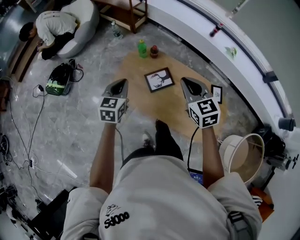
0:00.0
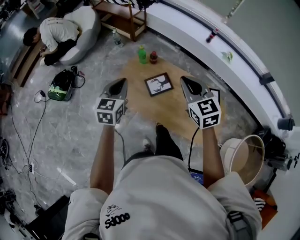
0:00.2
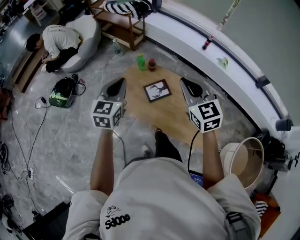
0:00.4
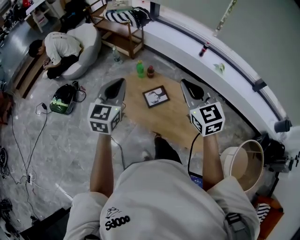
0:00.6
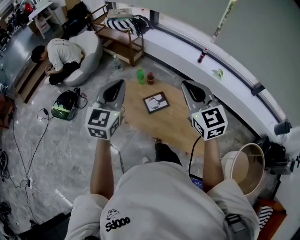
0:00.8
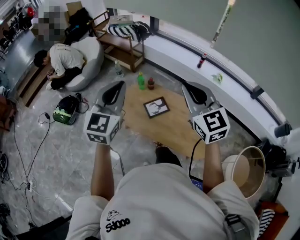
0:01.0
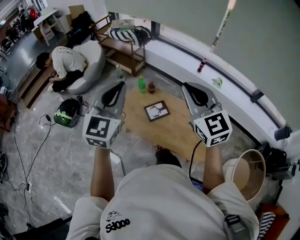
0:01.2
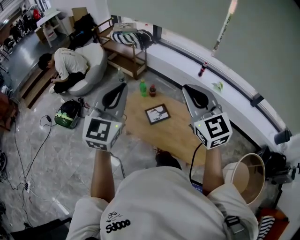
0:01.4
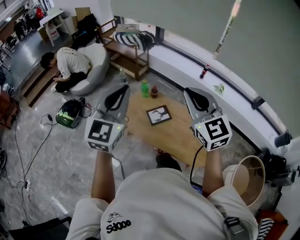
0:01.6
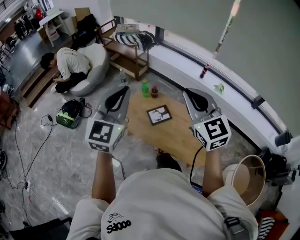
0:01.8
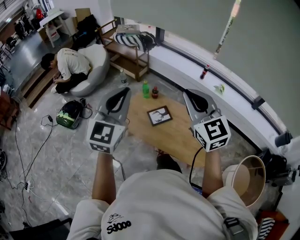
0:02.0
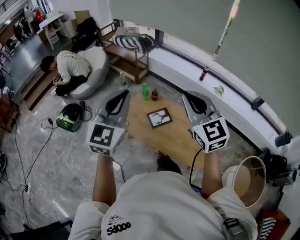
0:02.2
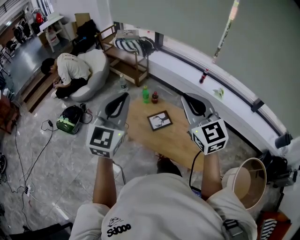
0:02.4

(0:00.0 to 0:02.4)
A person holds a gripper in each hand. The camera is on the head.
0:00.0 - 0:01.2: The right gripper travels upward and backward by about 30 cm, and swivels approximately 30 degrees. The left gripper goes approximately 30 cm upward, and rotates roughly 40 degrees.
0:01.2 - 0:02.4: The grippers stay close to where they were, moving slightly.

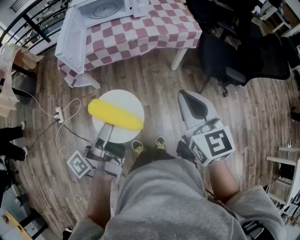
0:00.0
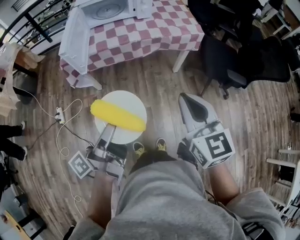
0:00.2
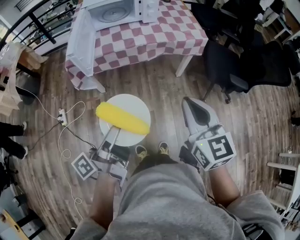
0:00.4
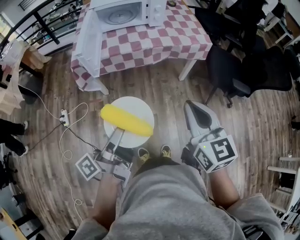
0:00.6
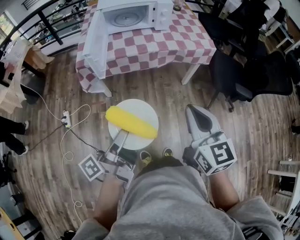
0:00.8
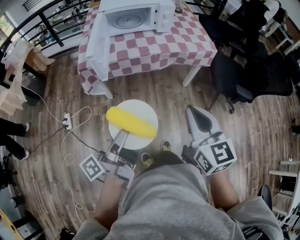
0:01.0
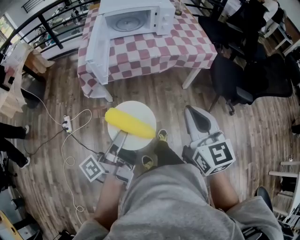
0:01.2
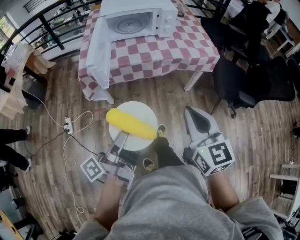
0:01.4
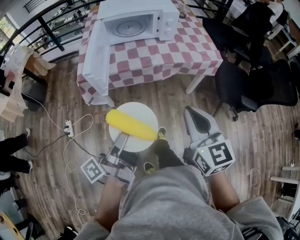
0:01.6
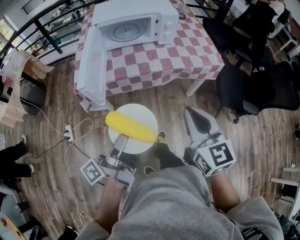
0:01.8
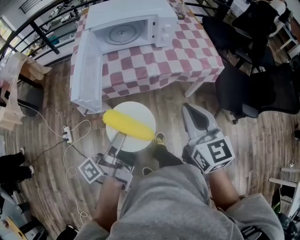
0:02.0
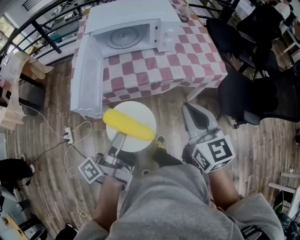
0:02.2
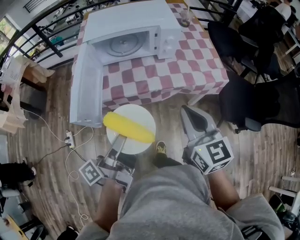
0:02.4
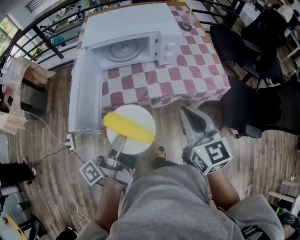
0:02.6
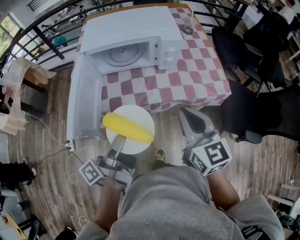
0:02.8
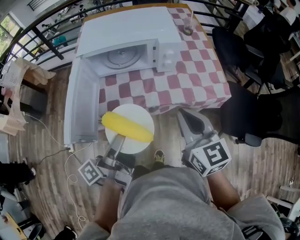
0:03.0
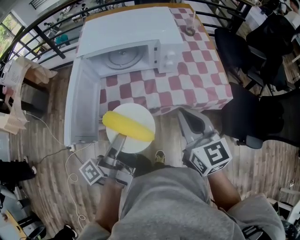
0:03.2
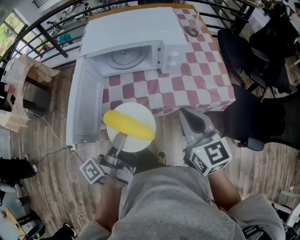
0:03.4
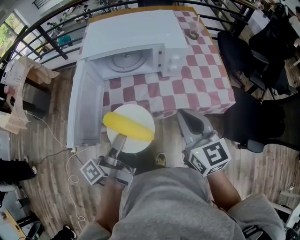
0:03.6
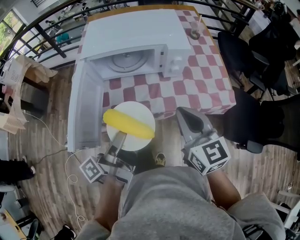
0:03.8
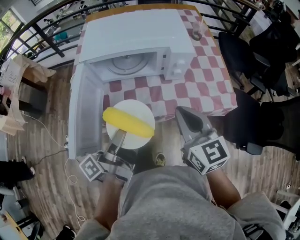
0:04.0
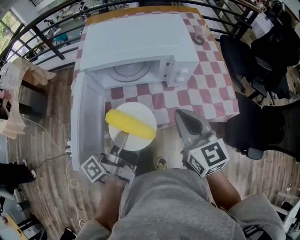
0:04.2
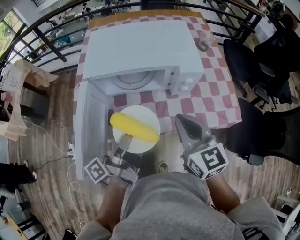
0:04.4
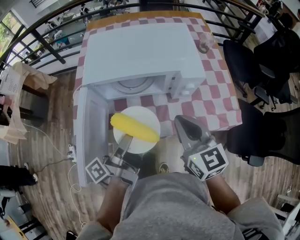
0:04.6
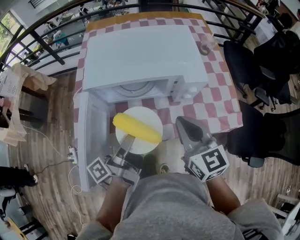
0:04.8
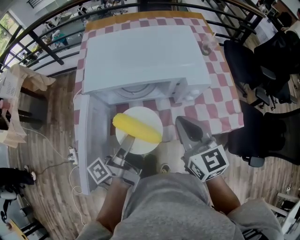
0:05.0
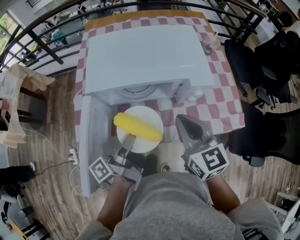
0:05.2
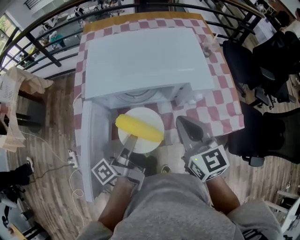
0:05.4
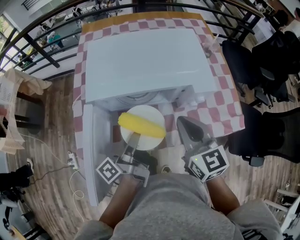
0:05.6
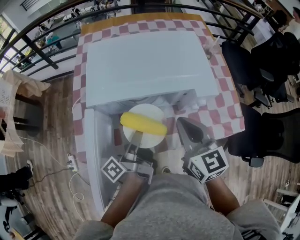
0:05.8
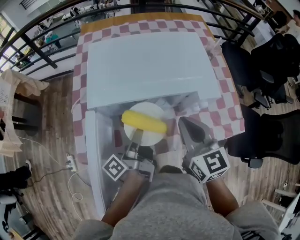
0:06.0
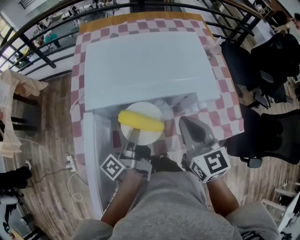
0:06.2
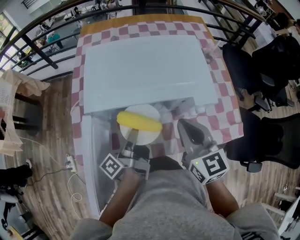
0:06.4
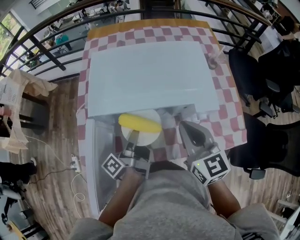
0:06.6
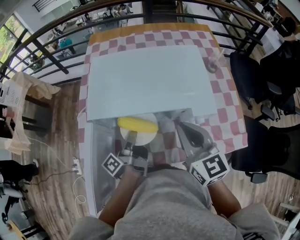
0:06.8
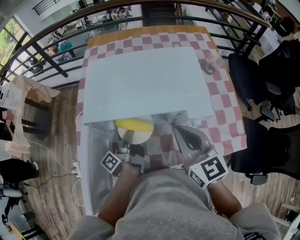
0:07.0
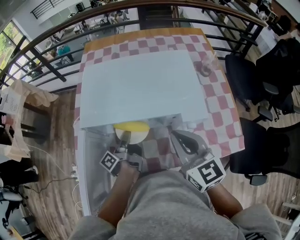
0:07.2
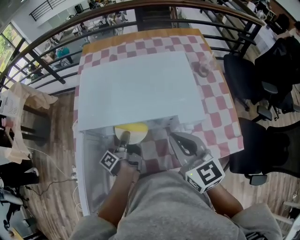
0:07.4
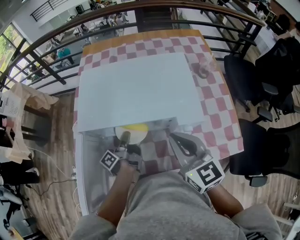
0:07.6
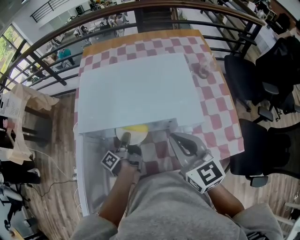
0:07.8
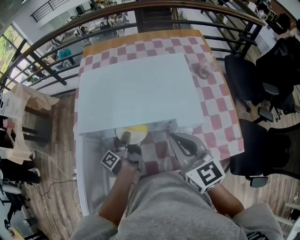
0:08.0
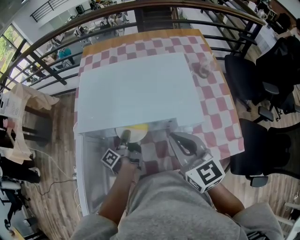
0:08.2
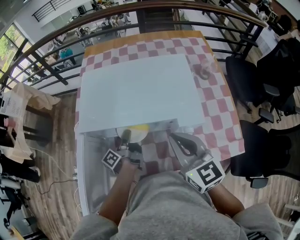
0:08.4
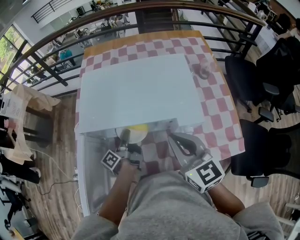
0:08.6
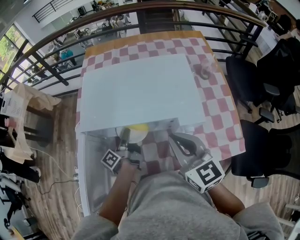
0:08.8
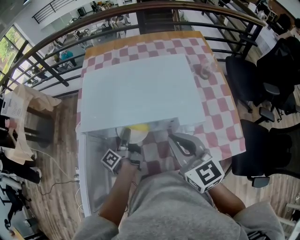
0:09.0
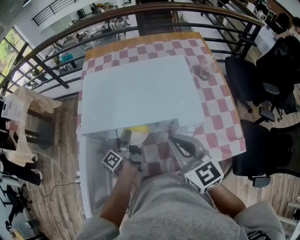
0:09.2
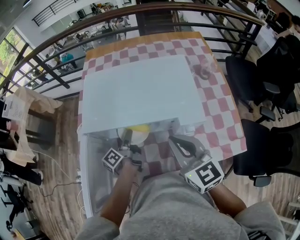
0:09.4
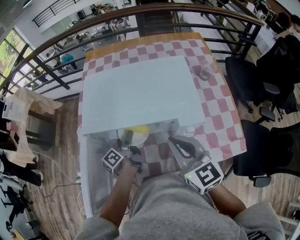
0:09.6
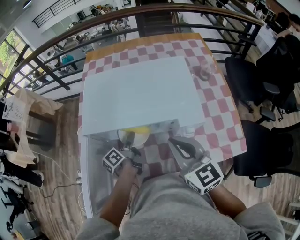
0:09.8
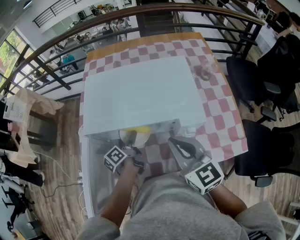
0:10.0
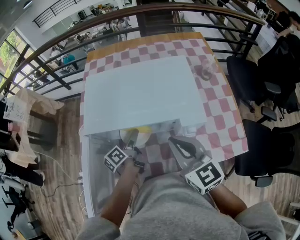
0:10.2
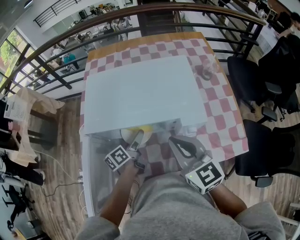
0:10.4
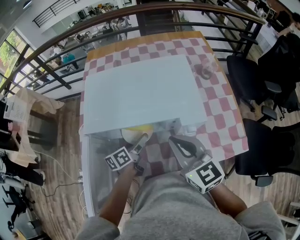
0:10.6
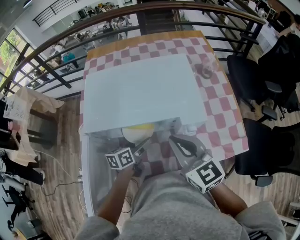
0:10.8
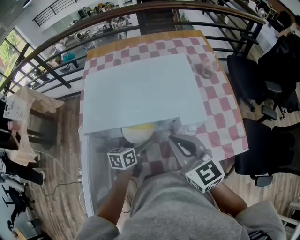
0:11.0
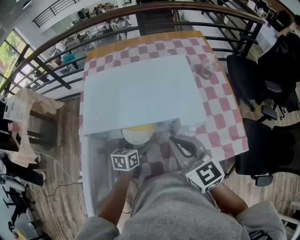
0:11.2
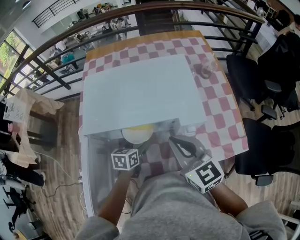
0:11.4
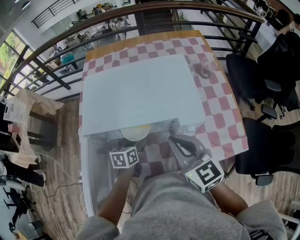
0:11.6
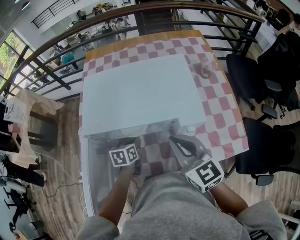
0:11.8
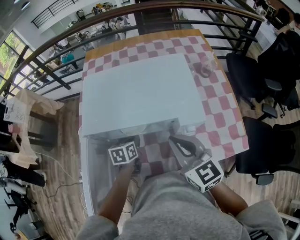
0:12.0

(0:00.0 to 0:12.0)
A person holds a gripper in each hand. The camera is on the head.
0:00.0 - 0:01.6: Both grippers travel together to the left and forward, roughly 10 cm.
0:01.6 - 0:03.0: Both grippers travel together forward, roughly 25 cm.
0:03.0 - 0:04.4: The left gripper goes approximately 15 cm forward; the right gripper shifts approximately 15 cm forward and to the left.
0:04.4 - 0:06.0: The grippers both shift forward by about 10 cm.
0:06.0 - 0:07.6: The left gripper shifts about 10 cm downward and forward.
0:07.6 - 0:09.0: The left gripper opens.
0:09.0 - 0:10.4: The left gripper rotates some 30 degrees, and opens its fingers.
0:10.4 - 0:12.0: The left gripper turns by about 40 degrees, and closes up.

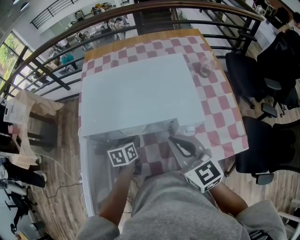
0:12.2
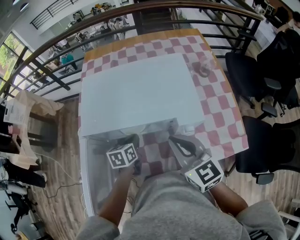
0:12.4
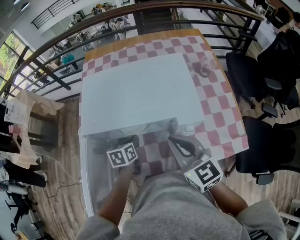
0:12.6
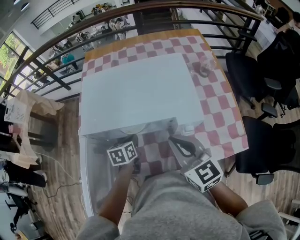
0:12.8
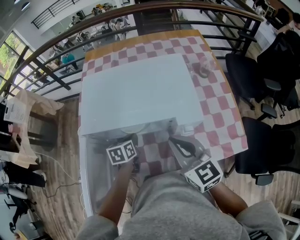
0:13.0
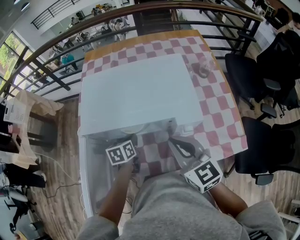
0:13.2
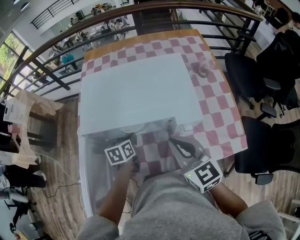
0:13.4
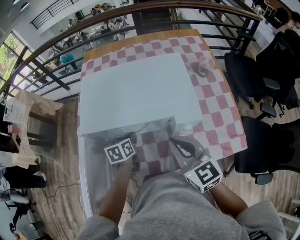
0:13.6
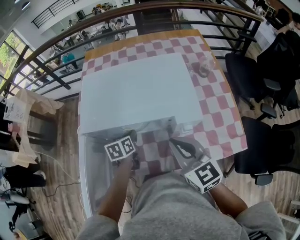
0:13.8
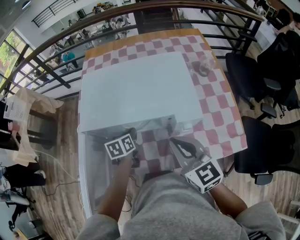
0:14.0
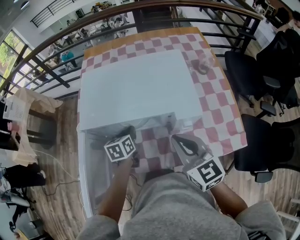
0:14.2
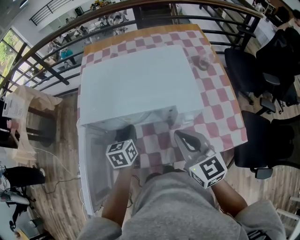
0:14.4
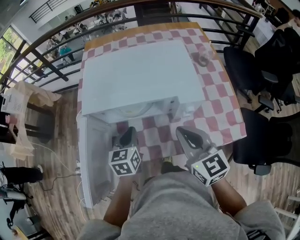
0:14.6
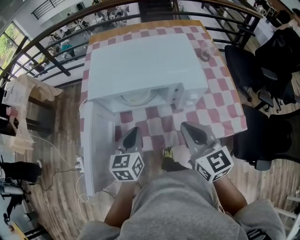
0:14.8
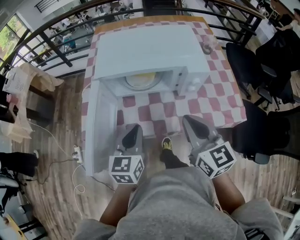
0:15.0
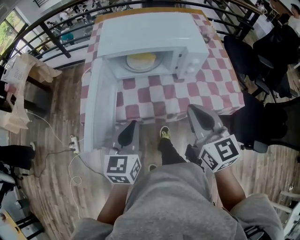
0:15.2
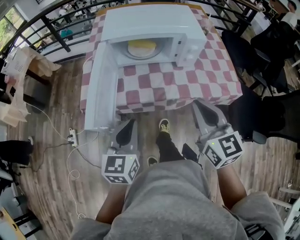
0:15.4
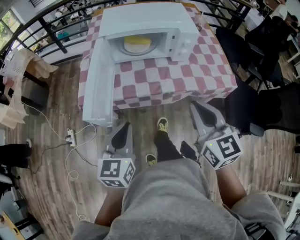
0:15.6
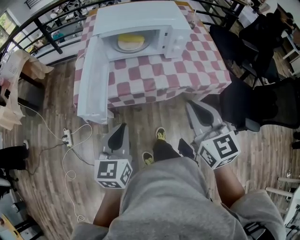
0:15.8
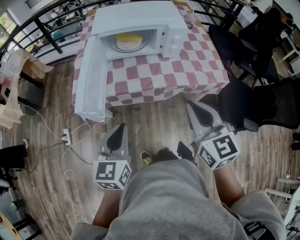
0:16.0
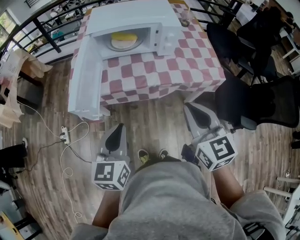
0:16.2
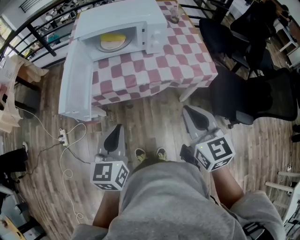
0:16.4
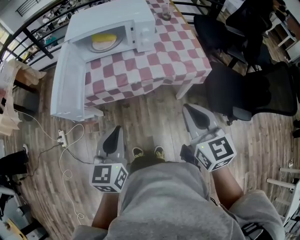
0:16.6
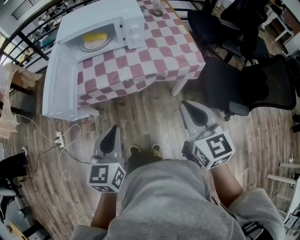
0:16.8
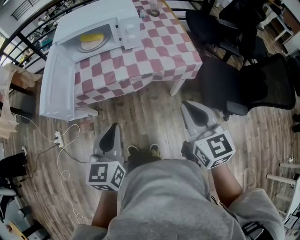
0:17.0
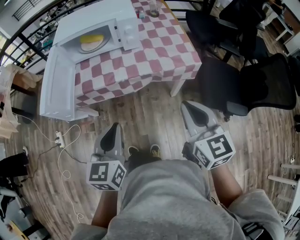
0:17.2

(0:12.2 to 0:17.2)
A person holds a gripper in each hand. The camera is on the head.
0:12.2 - 0:13.8: The grippers stay close to where they were, moving slightly.
0:13.8 - 0:15.6: Both grippers travel together backward, roughly 35 cm. The left gripper swivels roughly 30 degrees.
0:15.6 - 0:17.2: The two grippers go approximately 20 cm to the right and backward.

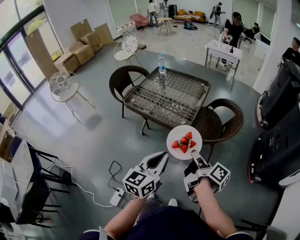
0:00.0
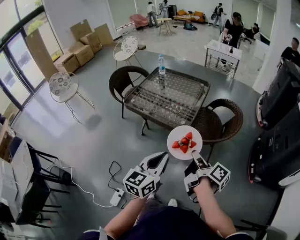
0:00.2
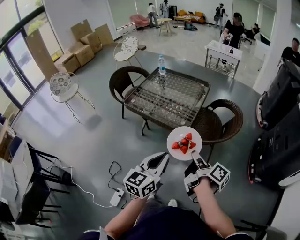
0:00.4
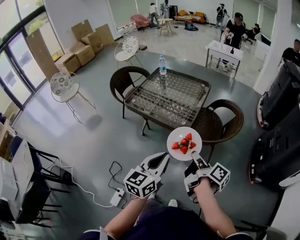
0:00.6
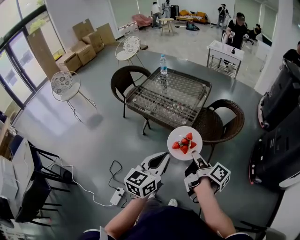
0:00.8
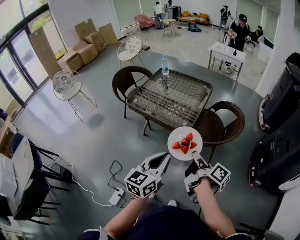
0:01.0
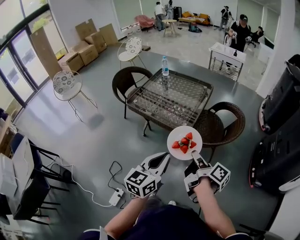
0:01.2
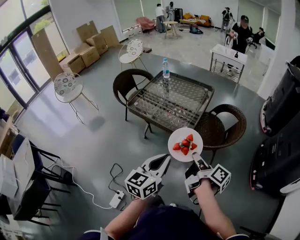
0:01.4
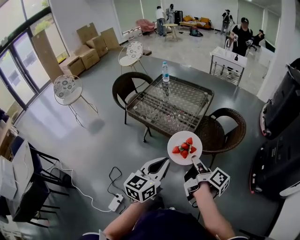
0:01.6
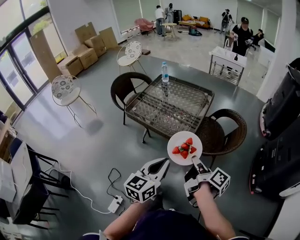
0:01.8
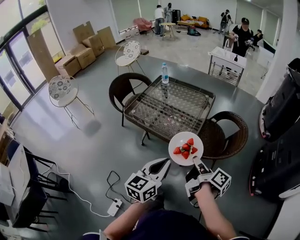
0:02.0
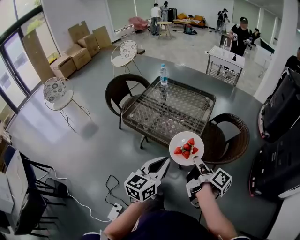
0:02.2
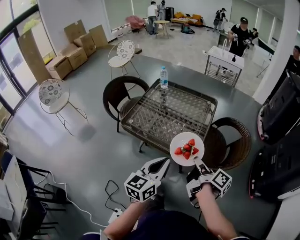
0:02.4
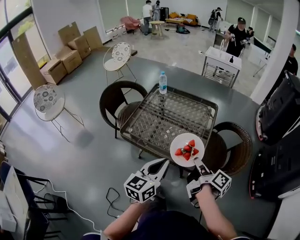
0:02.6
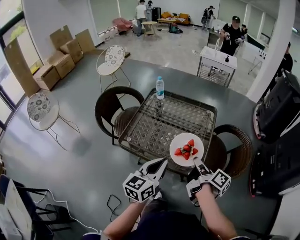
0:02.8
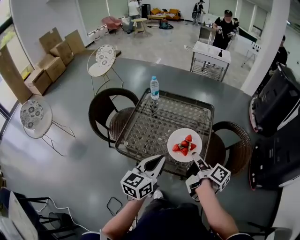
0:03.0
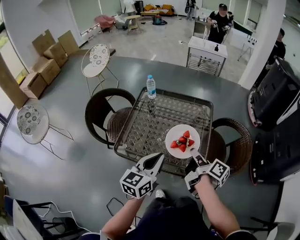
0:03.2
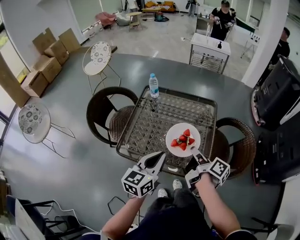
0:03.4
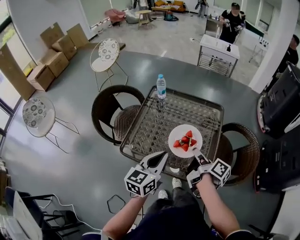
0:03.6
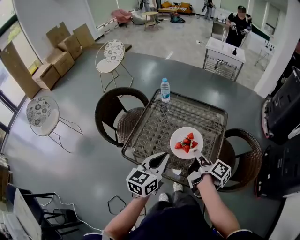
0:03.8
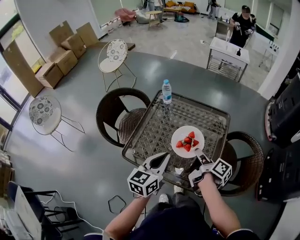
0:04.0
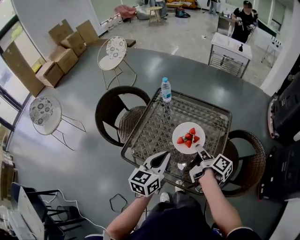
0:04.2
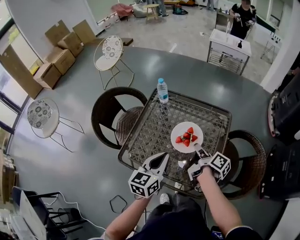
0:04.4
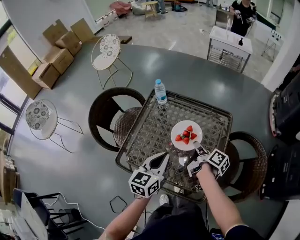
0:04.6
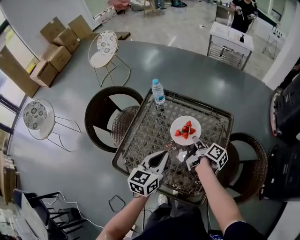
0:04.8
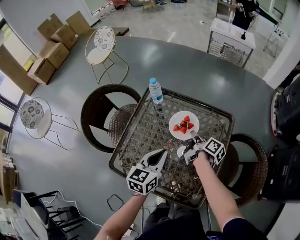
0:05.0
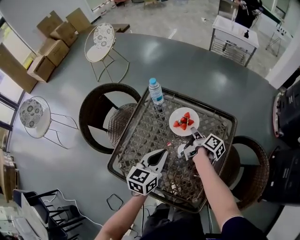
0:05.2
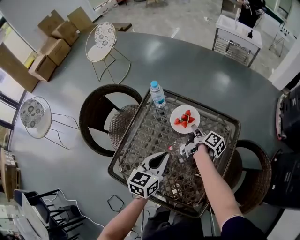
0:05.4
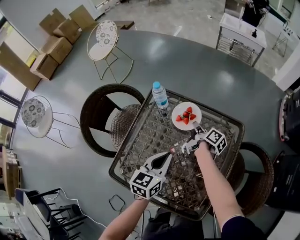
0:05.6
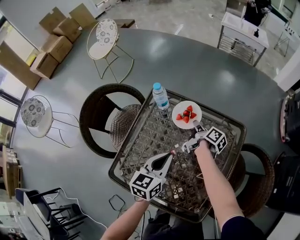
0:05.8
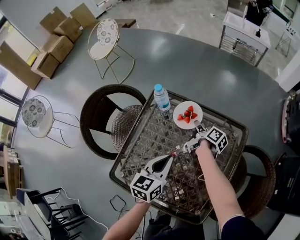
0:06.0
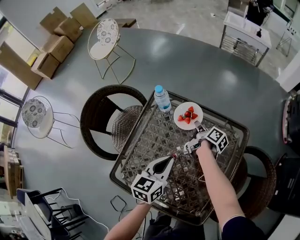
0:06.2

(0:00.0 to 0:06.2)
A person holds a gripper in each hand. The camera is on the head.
0:00.0 - 0:01.6: The grippers stay close to where they were, moving slightly.
0:01.6 - 0:03.2: Both grippers travel together forward and to the left, roughly 35 cm.
0:03.2 - 0:04.6: Both grippers travel together forward and downward, approximately 20 cm.
0:04.6 - 0:06.2: The right gripper is displaced forward and downward by approximately 25 cm. The left gripper is displaced forward and downward by approximately 15 cm.
